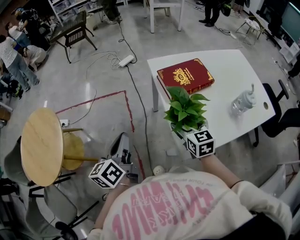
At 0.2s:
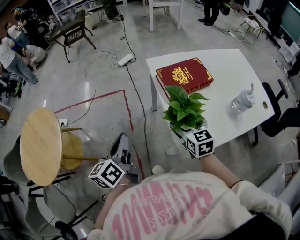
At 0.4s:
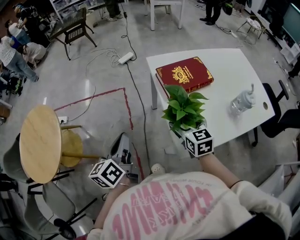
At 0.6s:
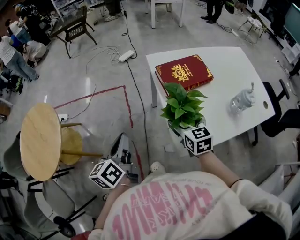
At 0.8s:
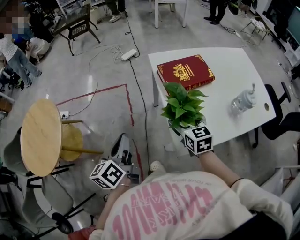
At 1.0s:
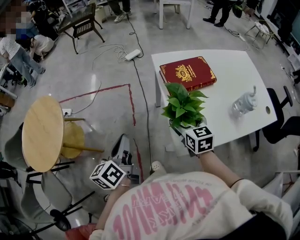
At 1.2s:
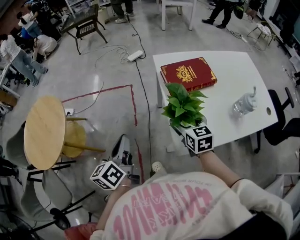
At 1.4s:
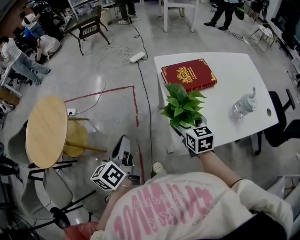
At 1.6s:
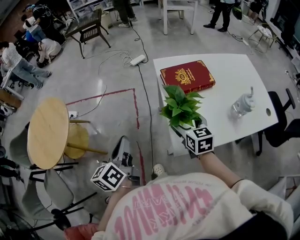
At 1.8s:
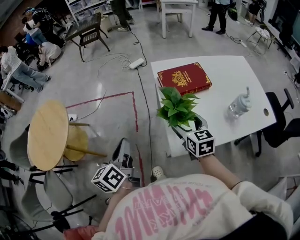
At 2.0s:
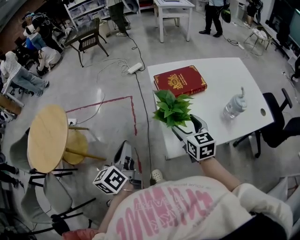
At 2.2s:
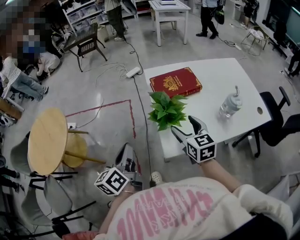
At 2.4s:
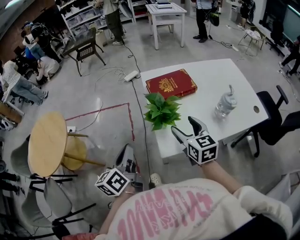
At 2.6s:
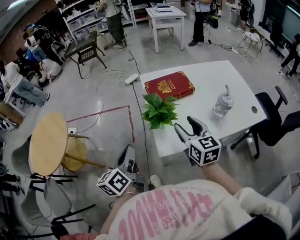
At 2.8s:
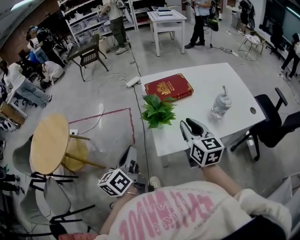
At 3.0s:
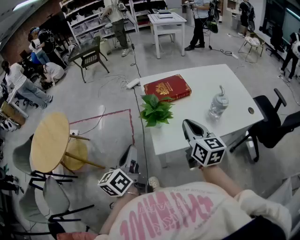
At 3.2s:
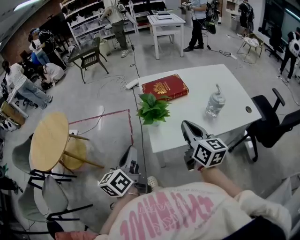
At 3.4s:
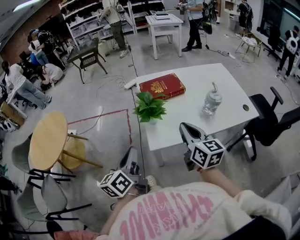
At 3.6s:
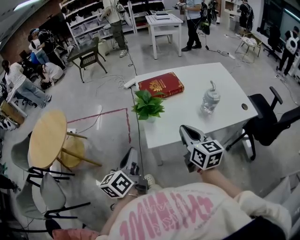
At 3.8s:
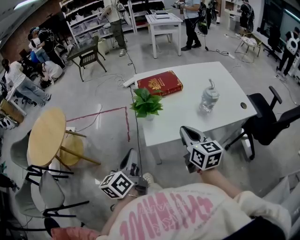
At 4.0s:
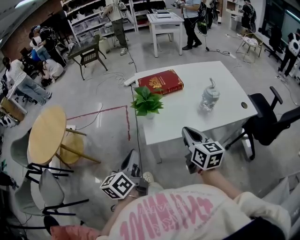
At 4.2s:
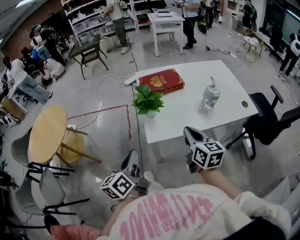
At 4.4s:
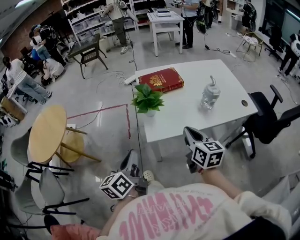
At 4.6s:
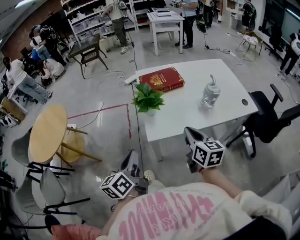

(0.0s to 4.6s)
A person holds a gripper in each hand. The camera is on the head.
0.0s - 1.6s: The left gripper is displaced backward by approximately 5 cm.
1.6s - 3.0s: The left gripper travels to the right and backward by some 15 cm. Meanwhile the right gripper travels upward, backward and to the right by some 20 cm, changes its angle by roughly 20 degrees, and closes.
3.0s - 4.6s: The right gripper travels backward and downward by about 10 cm. Meanwhile the left gripper shifts approximately 10 cm backward.

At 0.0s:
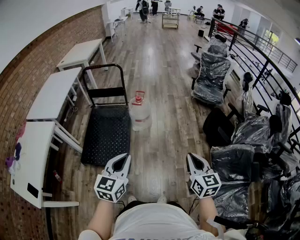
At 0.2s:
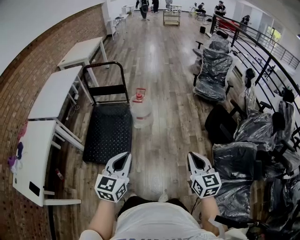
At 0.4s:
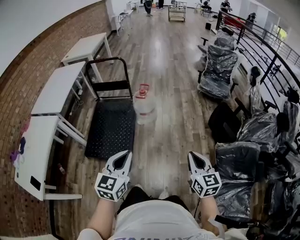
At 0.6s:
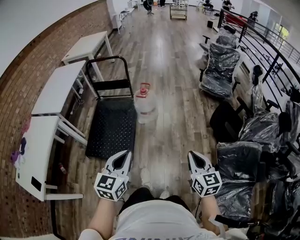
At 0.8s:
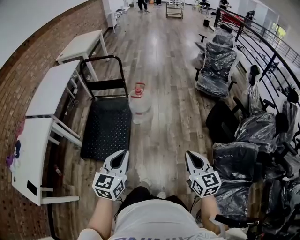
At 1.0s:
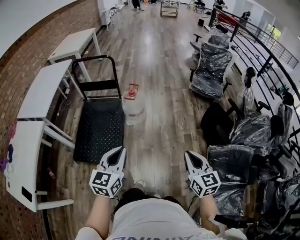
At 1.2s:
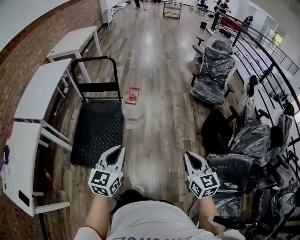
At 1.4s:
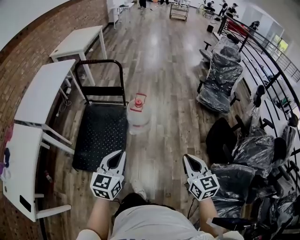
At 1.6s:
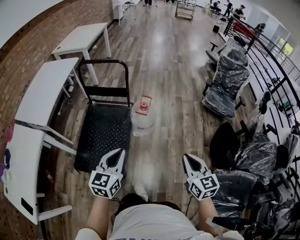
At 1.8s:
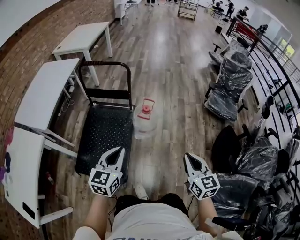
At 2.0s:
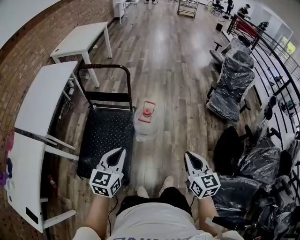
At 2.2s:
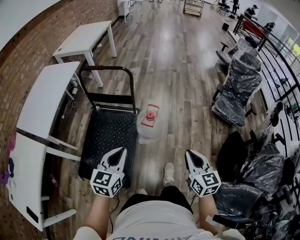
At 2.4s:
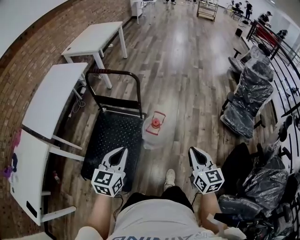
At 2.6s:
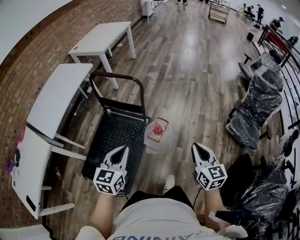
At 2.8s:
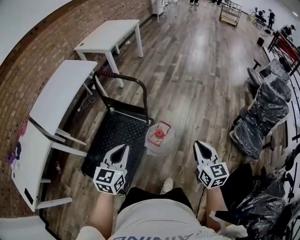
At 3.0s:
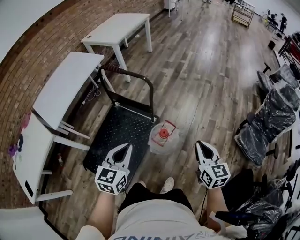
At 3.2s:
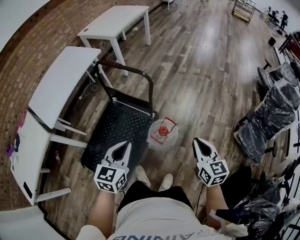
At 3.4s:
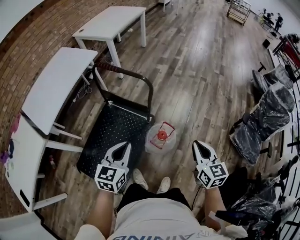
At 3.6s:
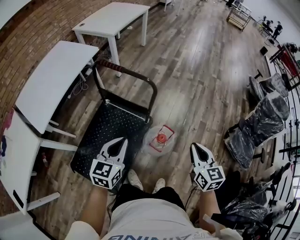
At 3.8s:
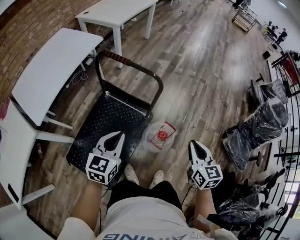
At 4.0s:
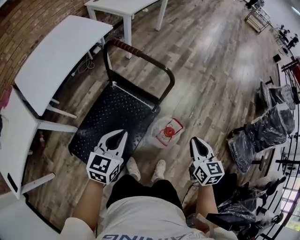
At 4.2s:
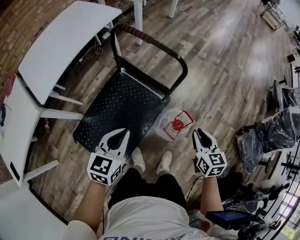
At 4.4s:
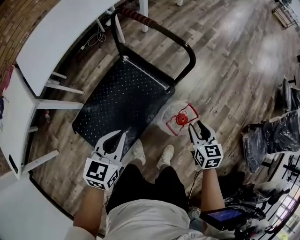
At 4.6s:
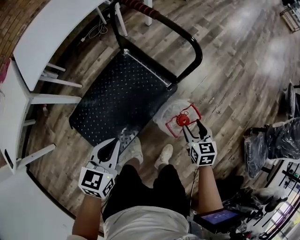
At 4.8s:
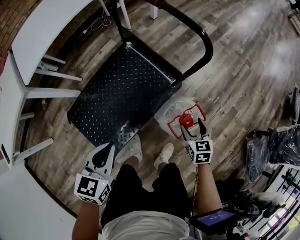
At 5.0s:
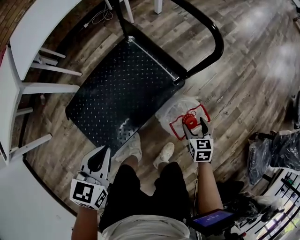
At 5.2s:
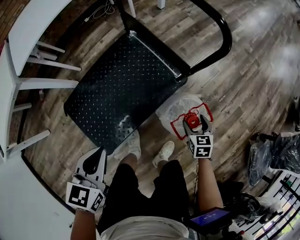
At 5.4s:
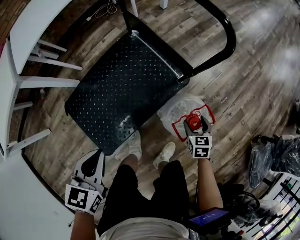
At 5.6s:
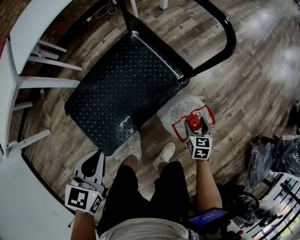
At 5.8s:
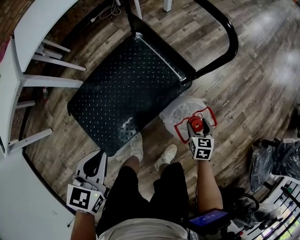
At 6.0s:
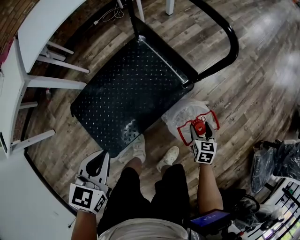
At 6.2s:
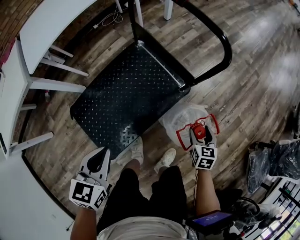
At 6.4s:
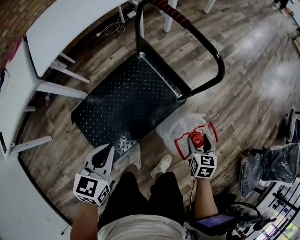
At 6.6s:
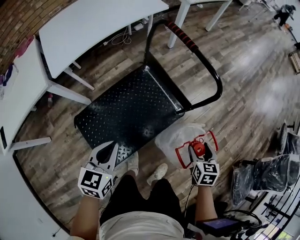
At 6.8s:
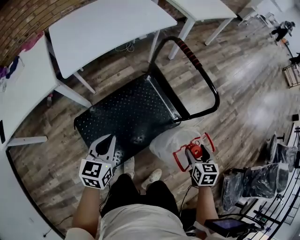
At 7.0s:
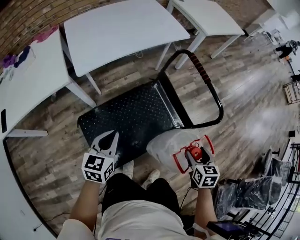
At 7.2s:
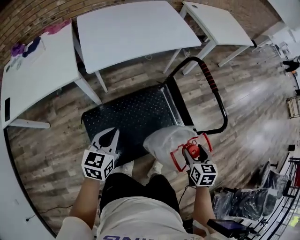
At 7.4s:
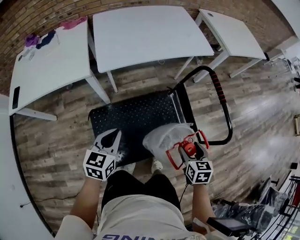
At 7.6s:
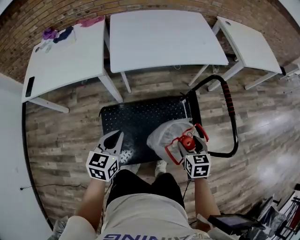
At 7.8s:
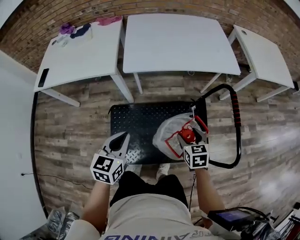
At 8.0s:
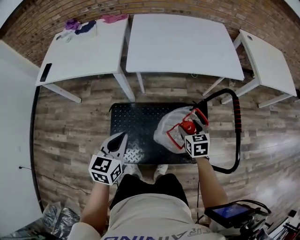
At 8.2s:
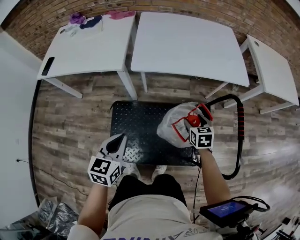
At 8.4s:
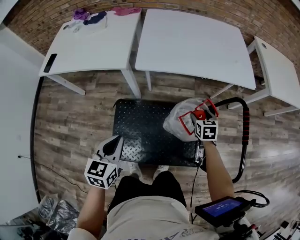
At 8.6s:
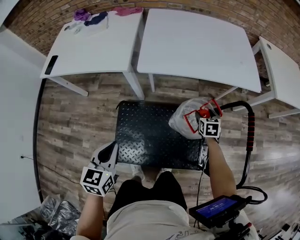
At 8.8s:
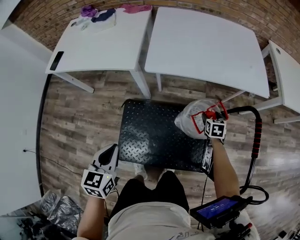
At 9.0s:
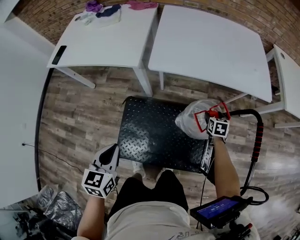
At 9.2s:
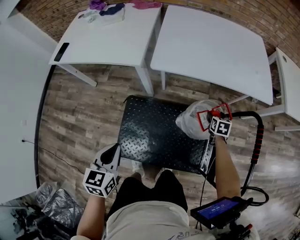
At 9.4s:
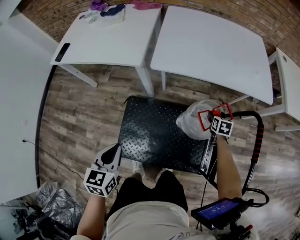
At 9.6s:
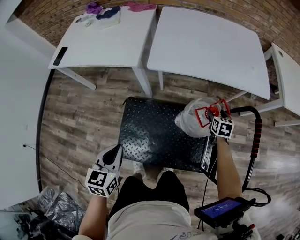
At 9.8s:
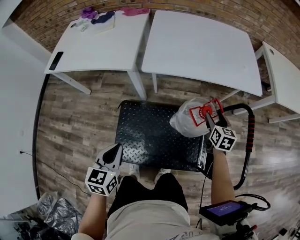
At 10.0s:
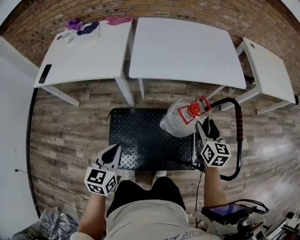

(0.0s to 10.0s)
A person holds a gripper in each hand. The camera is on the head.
0.0s - 1.4s: Both grippers move forward, some 20 cm.
1.4s - 2.8s: The grippers both shift forward by about 40 cm.
2.8s - 4.2s: The right gripper goes approximately 25 cm forward, to the left and downward, and turns by some 20 degrees; the left gripper moves to the left, downward and forward, some 20 cm.
4.2s - 5.8s: The left gripper heads downward and backward, covering roughly 15 cm, and swivels roughly 20 degrees, while the right gripper shifts about 35 cm downward, and opens.
5.8s - 7.2s: The left gripper shifts about 25 cm to the left, upward and forward, and changes its angle by about 20 degrees. Meanwhile the right gripper heads upward and to the left, covering approximately 40 cm.
7.2s - 8.6s: The left gripper changes place by some 10 cm, and rotates some 30 degrees. Meanwhile the right gripper moves about 40 cm, and turns by some 30 degrees.
8.6s - 10.0s: The right gripper is displaced upward and backward by approximately 20 cm, and turns by roughly 30 degrees.

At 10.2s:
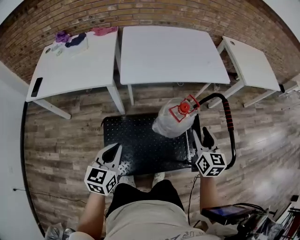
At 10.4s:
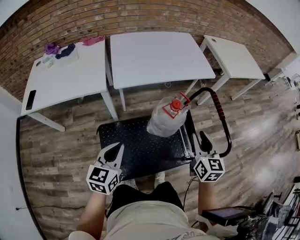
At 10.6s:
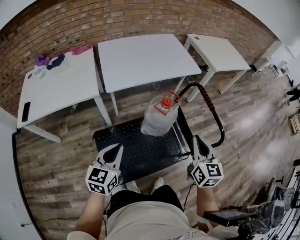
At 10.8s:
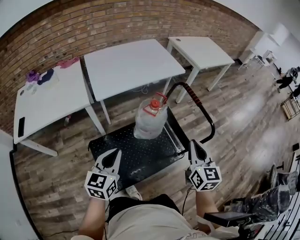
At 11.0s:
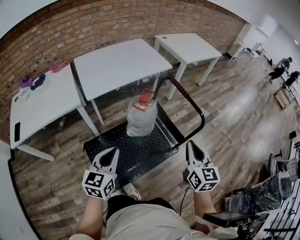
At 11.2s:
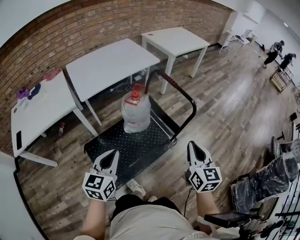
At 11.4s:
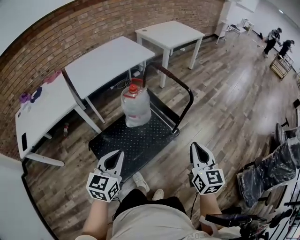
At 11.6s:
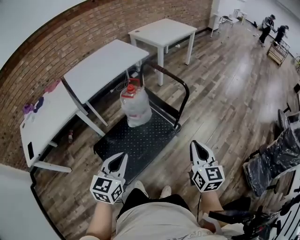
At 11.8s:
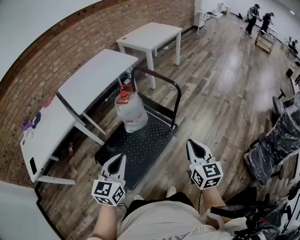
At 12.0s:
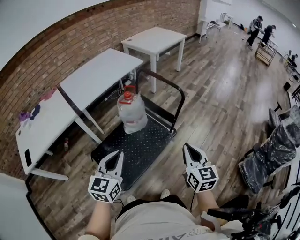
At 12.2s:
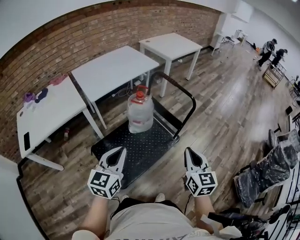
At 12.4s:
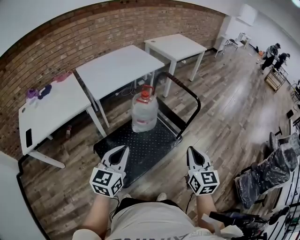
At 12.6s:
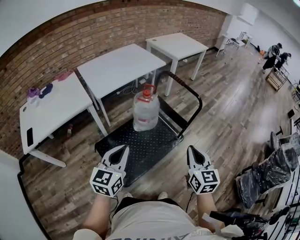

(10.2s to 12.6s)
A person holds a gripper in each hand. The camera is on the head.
10.2s - 11.4s: The left gripper changes place by about 25 cm, and changes its angle by about 40 degrees. The right gripper shifts by roughly 40 cm, turns by approximately 30 degrees, and closes.
11.4s - 12.6s: The right gripper travels to the left and backward by some 15 cm. Meanwhile the left gripper travels to the left by some 10 cm.

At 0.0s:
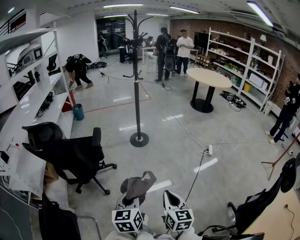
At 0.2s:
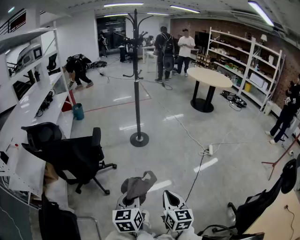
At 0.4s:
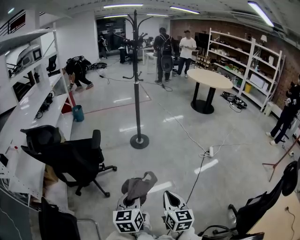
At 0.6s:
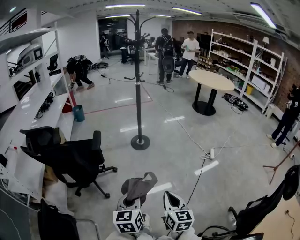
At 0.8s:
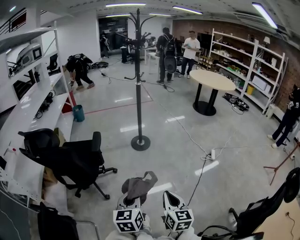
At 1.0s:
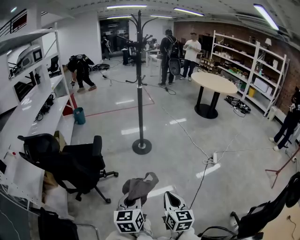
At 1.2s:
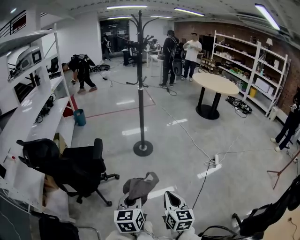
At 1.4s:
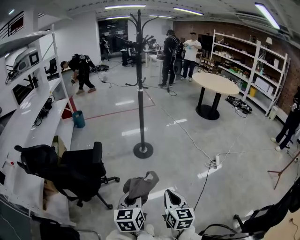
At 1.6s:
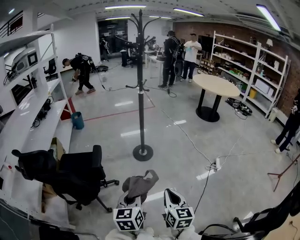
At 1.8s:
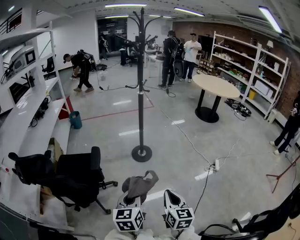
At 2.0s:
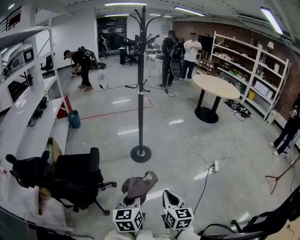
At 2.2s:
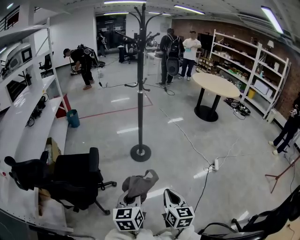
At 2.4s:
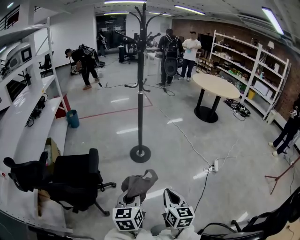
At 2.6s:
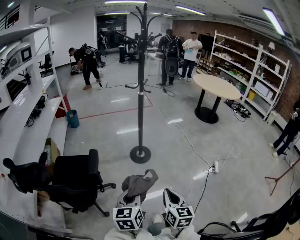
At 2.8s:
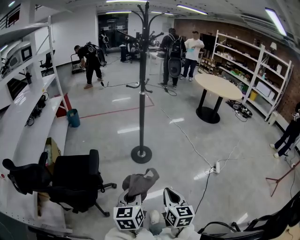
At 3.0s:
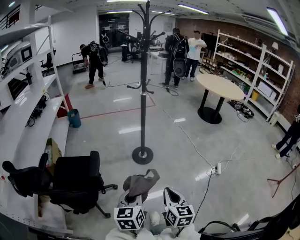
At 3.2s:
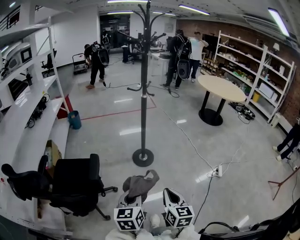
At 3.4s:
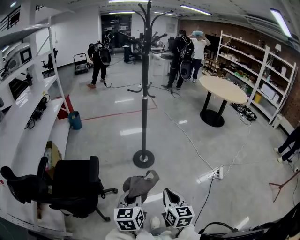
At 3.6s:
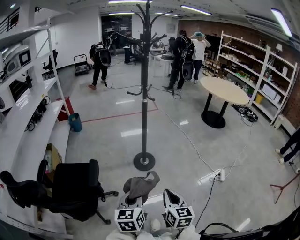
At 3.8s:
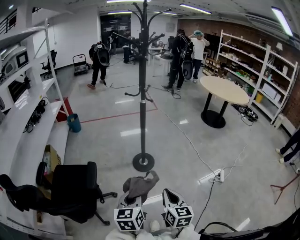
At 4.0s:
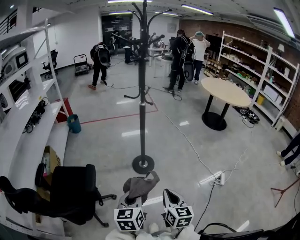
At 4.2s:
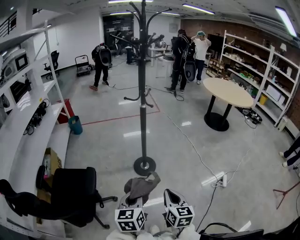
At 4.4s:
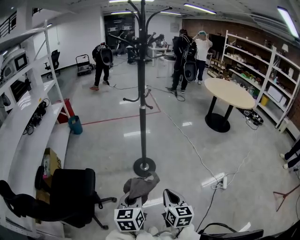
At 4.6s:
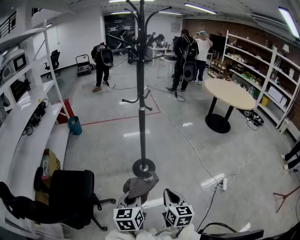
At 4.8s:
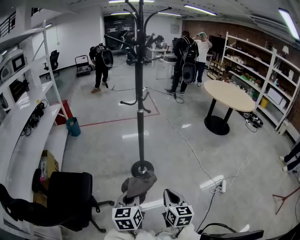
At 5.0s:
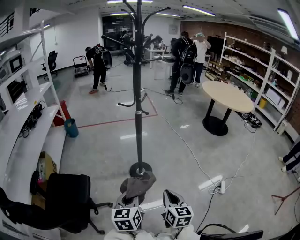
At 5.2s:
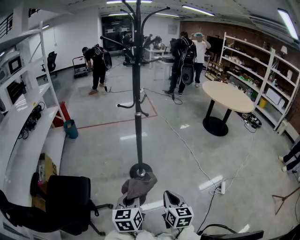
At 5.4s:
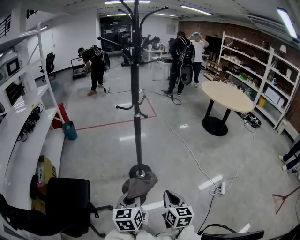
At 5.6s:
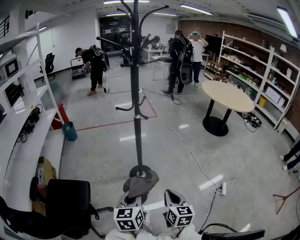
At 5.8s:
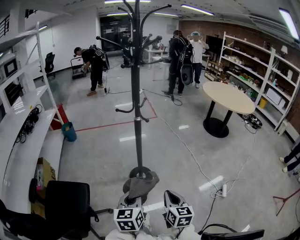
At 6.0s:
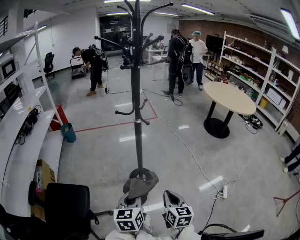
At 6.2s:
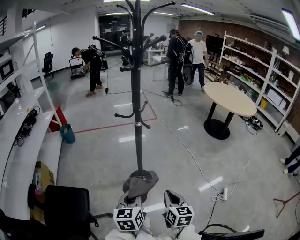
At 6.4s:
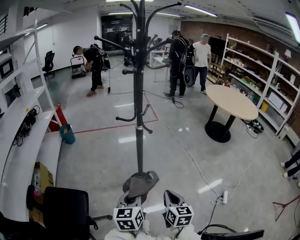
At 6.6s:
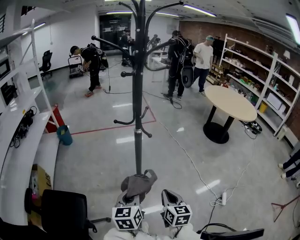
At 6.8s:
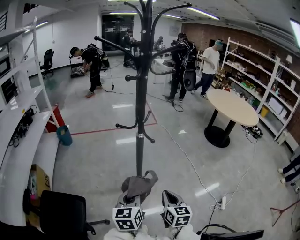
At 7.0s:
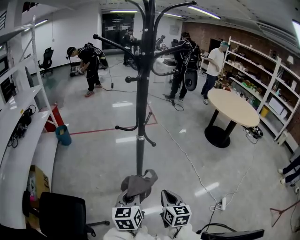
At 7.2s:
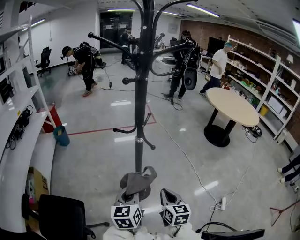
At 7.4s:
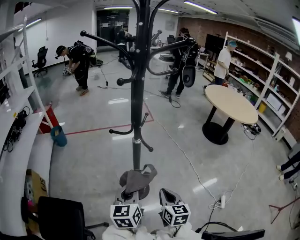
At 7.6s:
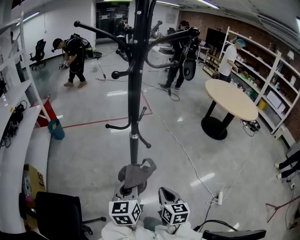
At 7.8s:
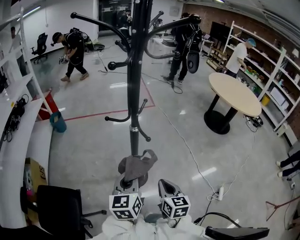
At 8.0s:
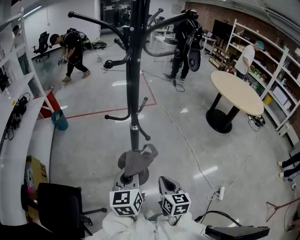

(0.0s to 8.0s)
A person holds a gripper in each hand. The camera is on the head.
0.0s - 1.6s: The grippers both shift forward by roughly 20 cm.
1.6s - 3.2s: Both grippers travel together forward, approximately 10 cm.
3.2s - 4.8s: Both grippers travel together forward, some 15 cm.
4.8s - 6.4s: The two grippers go some 15 cm forward.
6.4s - 8.0s: The grippers both shift forward by some 15 cm.
